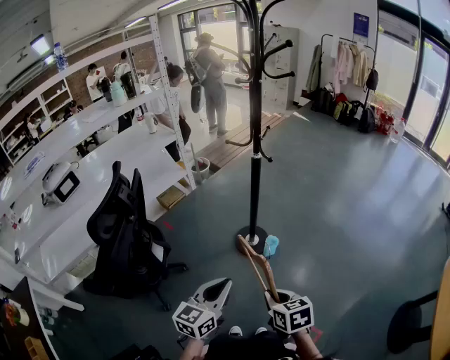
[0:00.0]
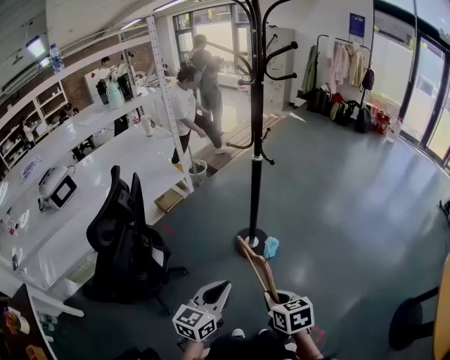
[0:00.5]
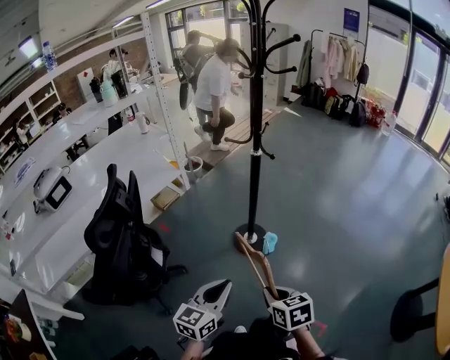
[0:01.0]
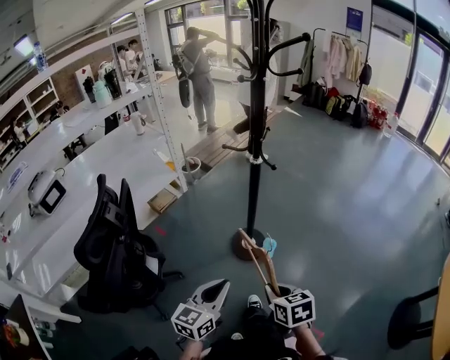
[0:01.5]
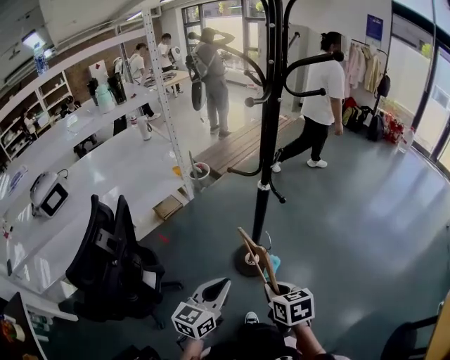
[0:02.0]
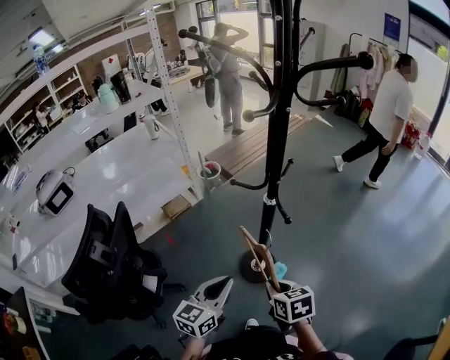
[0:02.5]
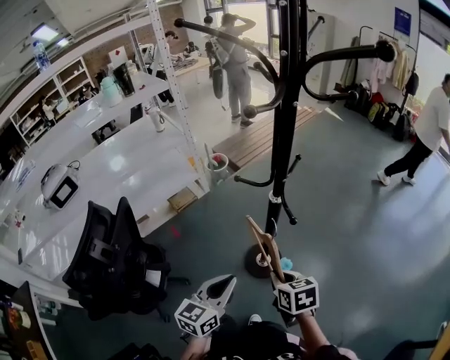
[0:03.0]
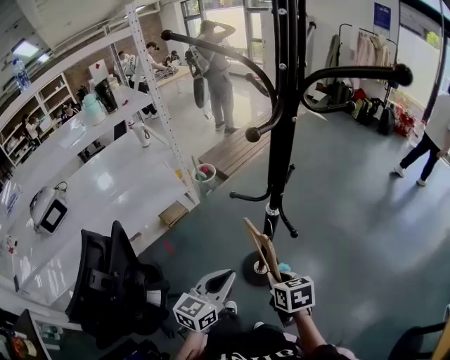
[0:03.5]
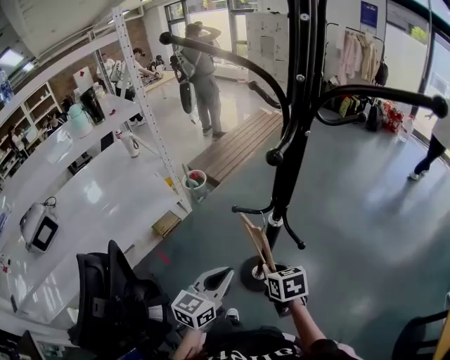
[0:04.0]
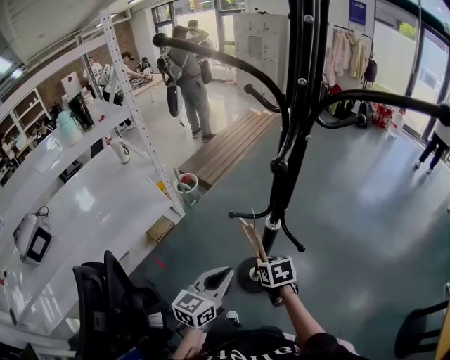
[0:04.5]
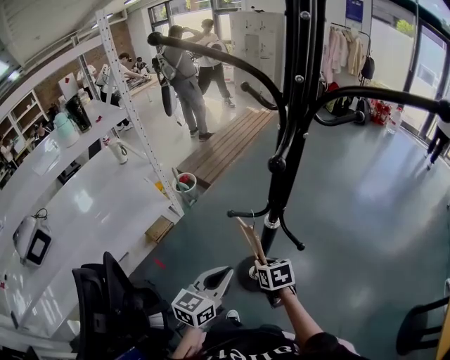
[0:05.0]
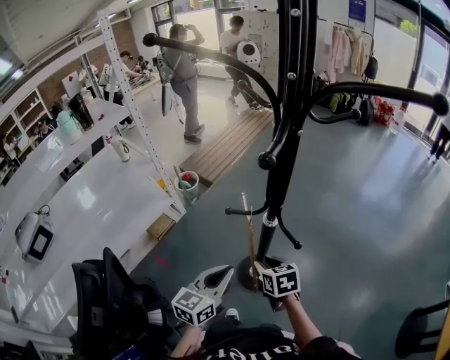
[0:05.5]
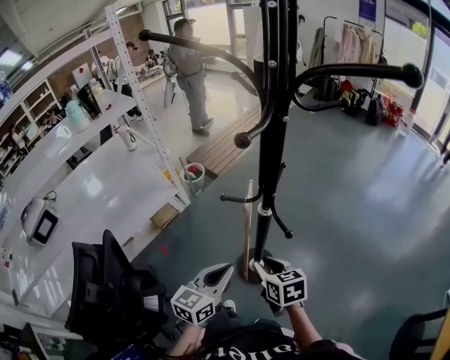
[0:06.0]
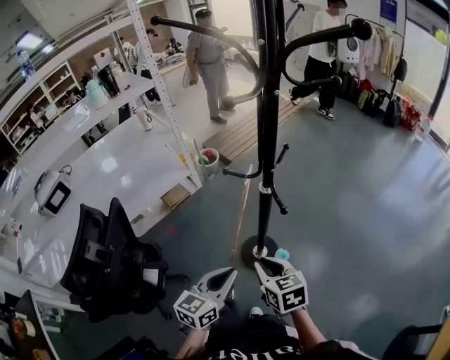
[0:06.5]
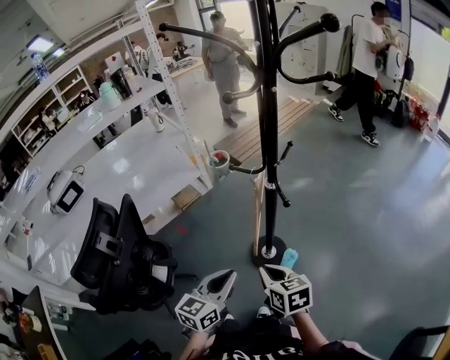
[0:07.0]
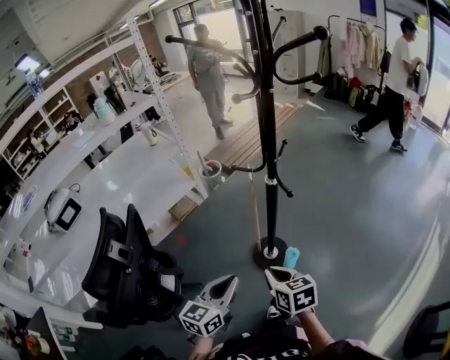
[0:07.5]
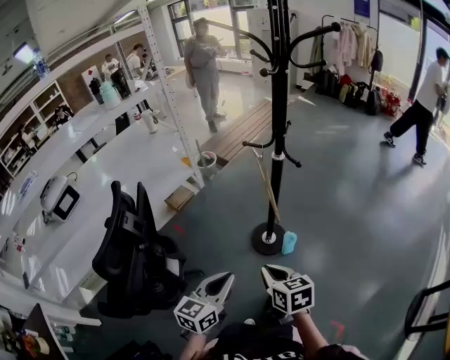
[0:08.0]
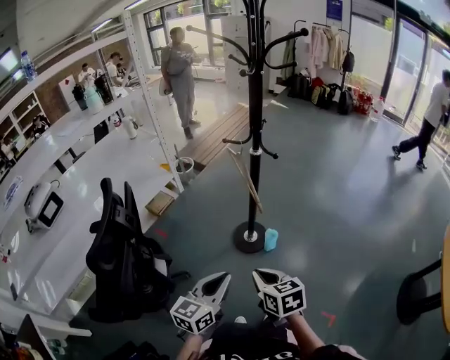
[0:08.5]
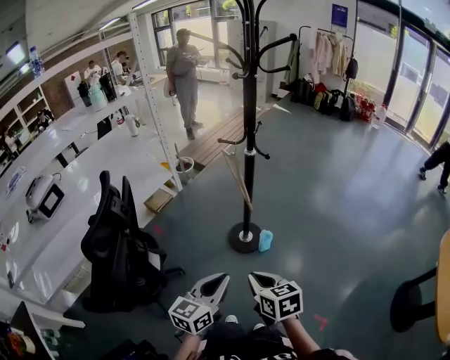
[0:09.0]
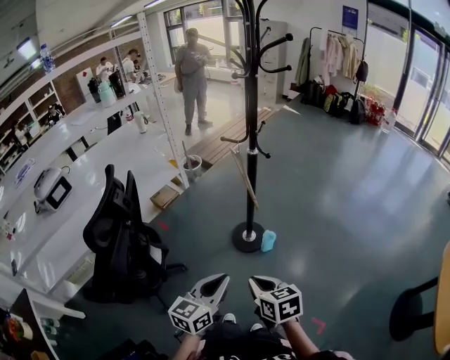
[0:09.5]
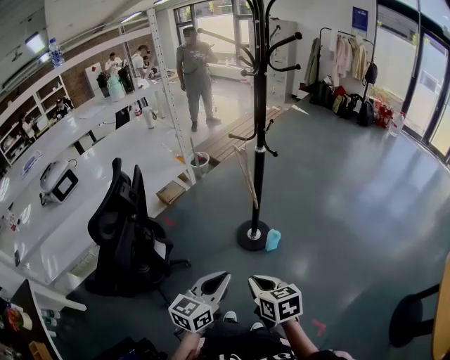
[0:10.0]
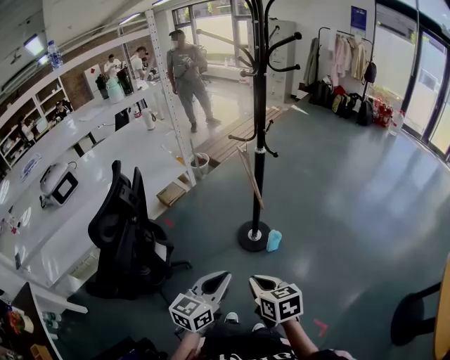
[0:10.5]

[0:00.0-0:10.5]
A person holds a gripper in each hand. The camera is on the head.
0:00.0 to 0:02.0: Both grippers move forward, approximately 20 cm.
0:02.0 to 0:04.0: Both grippers move forward, some 25 cm.
0:04.0 to 0:06.5: The right gripper shifts roughly 10 cm backward, while the left gripper heads backward and to the right, covering some 15 cm.
0:06.5 to 0:08.5: Both grippers travel together backward and to the left, about 25 cm.
0:08.5 to 0:10.5: The left gripper moves to the right, some 5 cm, while the right gripper travels backward by roughly 5 cm.

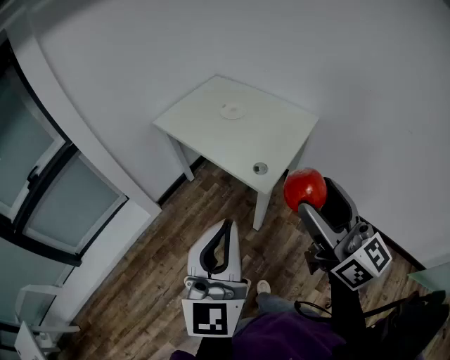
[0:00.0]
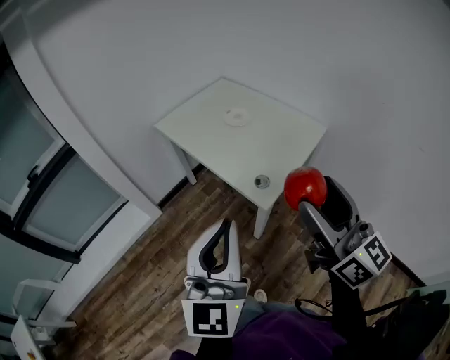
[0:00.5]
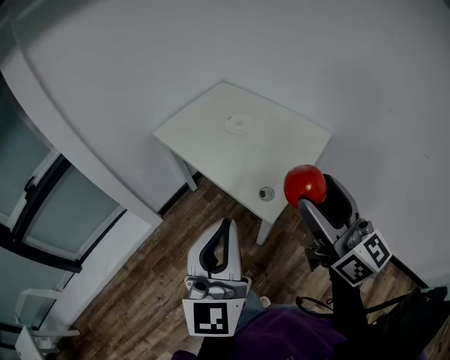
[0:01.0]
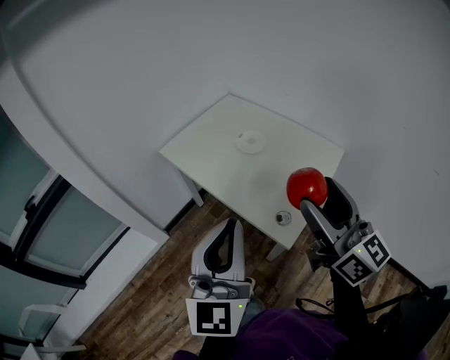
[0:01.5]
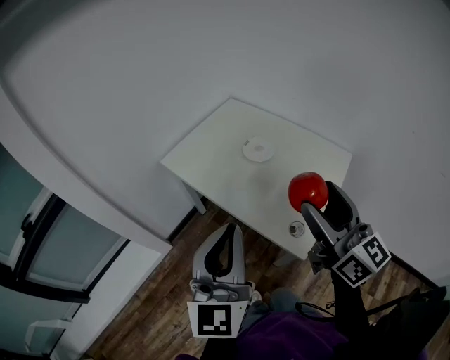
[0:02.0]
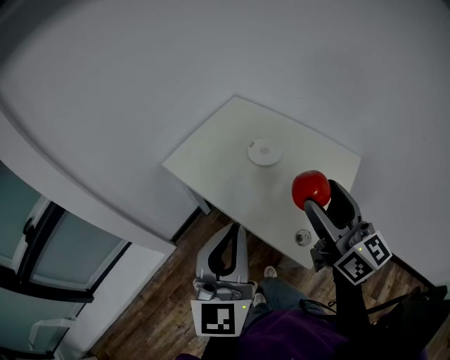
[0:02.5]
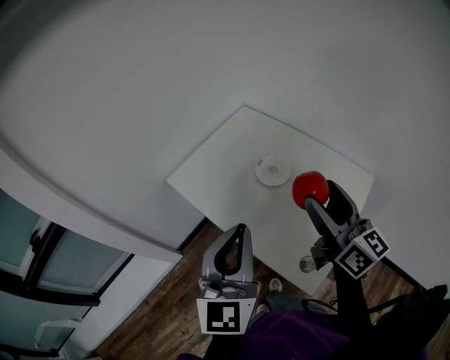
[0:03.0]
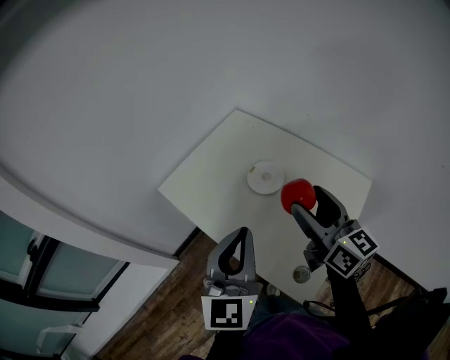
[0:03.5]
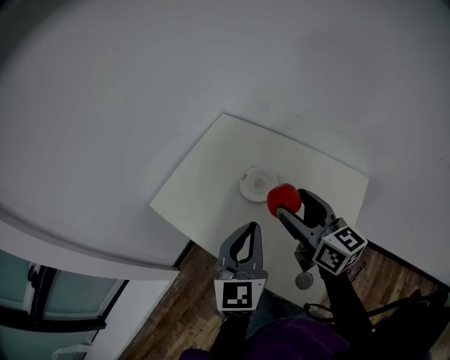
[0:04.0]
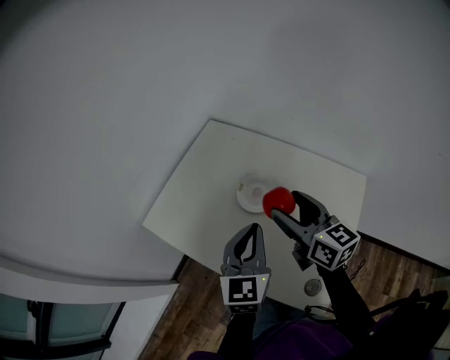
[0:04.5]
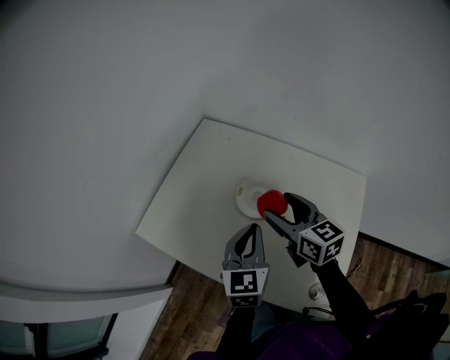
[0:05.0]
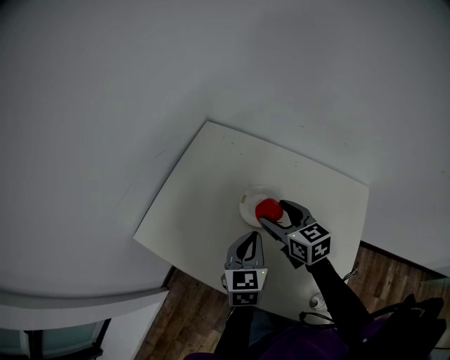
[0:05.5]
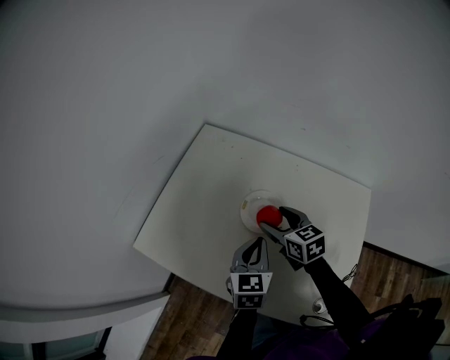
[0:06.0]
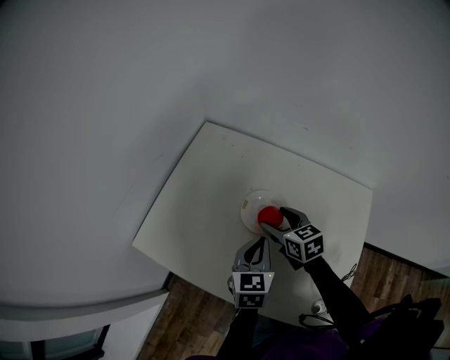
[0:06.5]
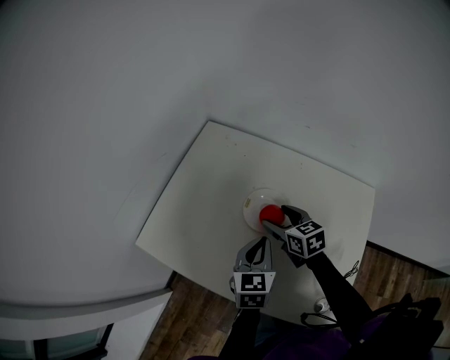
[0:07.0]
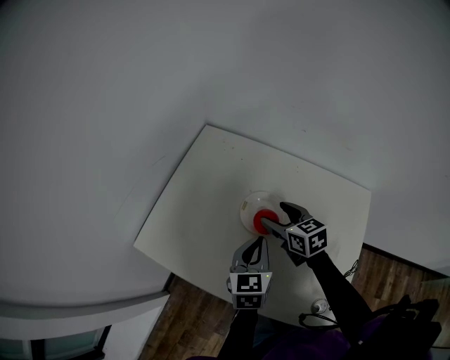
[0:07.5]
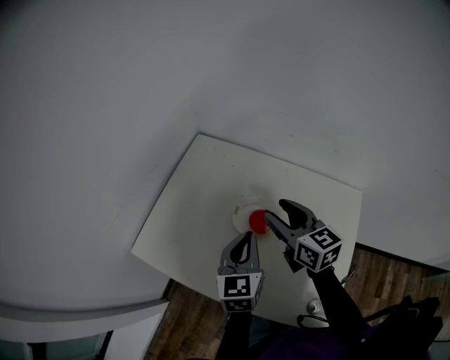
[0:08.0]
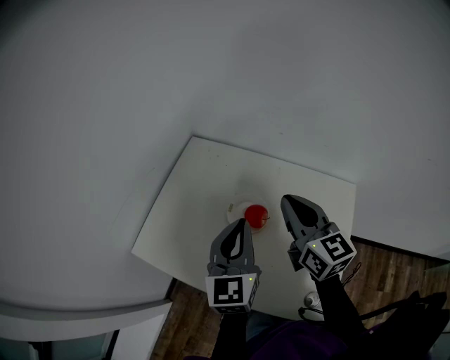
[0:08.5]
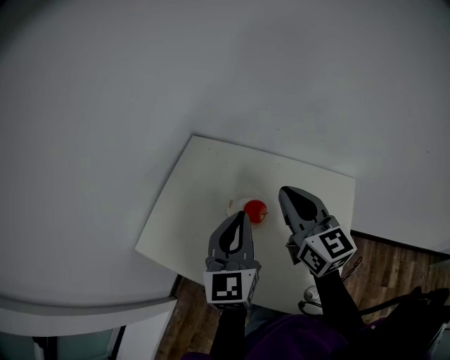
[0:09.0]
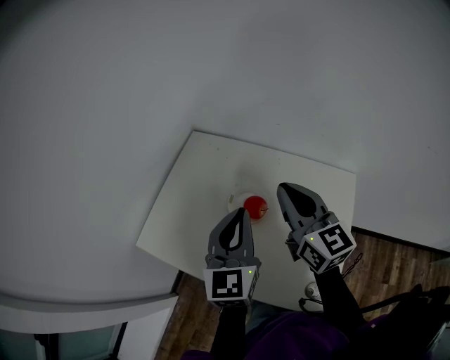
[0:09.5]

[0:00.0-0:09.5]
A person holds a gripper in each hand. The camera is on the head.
0:00.0 to 0:02.0: Both grippers move forward, some 30 cm.
0:02.0 to 0:04.0: The right gripper heads forward and downward, covering some 25 cm, while the left gripper goes approximately 30 cm forward, downward and to the right.
0:04.0 to 0:05.5: The two grippers go roughly 20 cm downward and forward. The right gripper changes its angle by some 30 degrees.
0:05.5 to 0:07.5: The right gripper ends up approximately 5 cm from where it was.
0:07.5 to 0:09.5: The grippers both shift upward by some 20 cm. The right gripper changes its angle by about 30 degrees, and closes its fingers, while the left gripper swivels some 20 degrees.

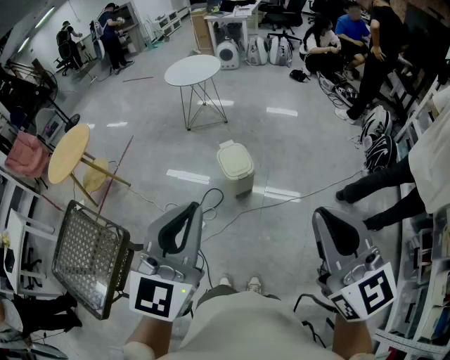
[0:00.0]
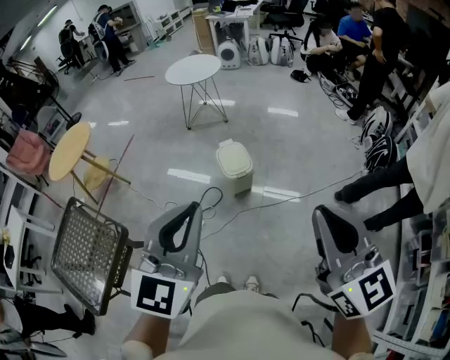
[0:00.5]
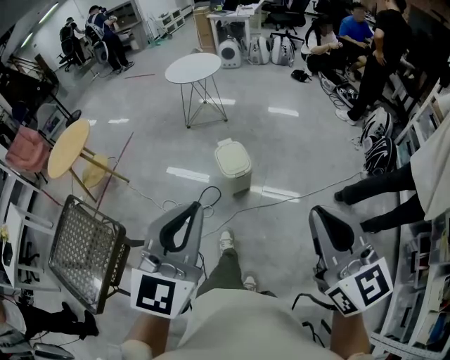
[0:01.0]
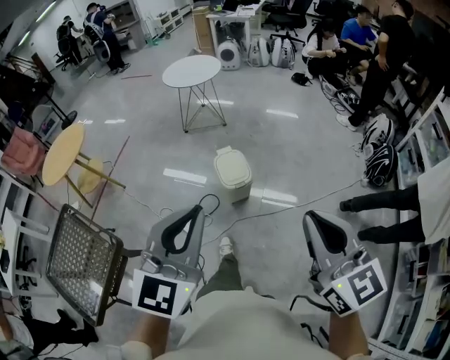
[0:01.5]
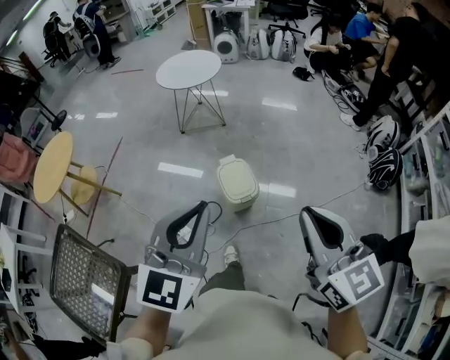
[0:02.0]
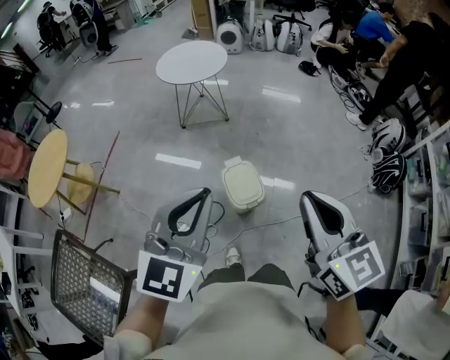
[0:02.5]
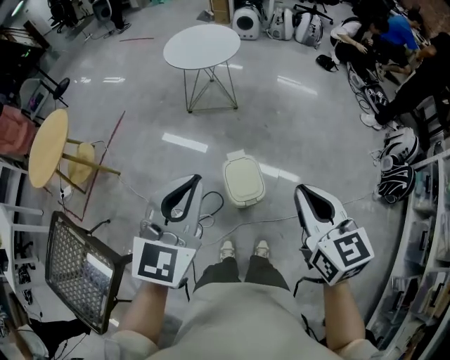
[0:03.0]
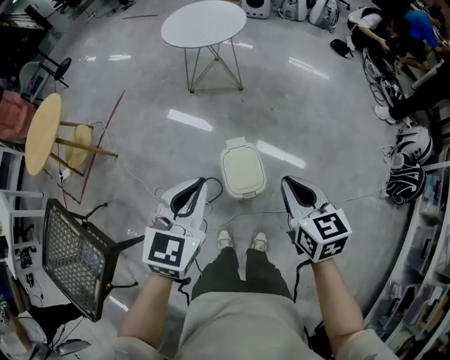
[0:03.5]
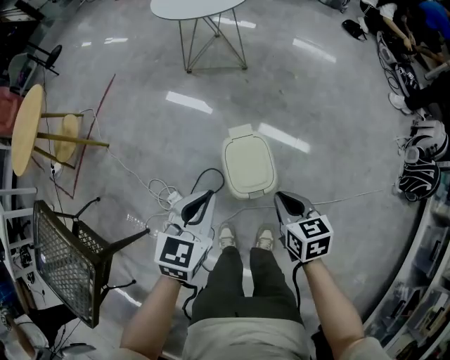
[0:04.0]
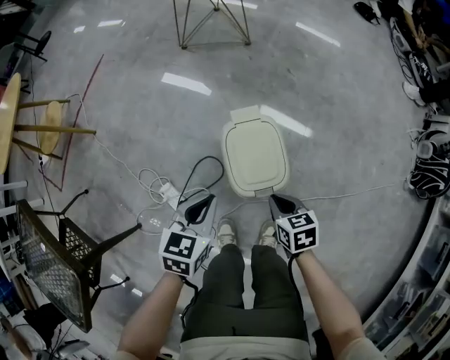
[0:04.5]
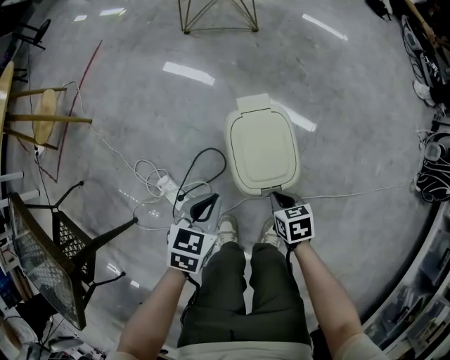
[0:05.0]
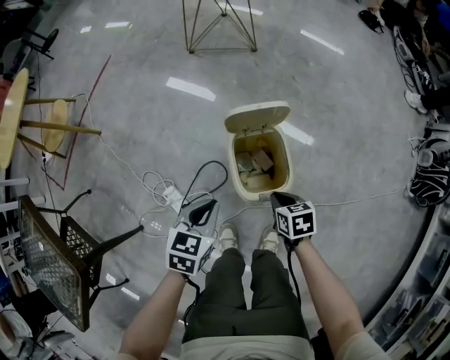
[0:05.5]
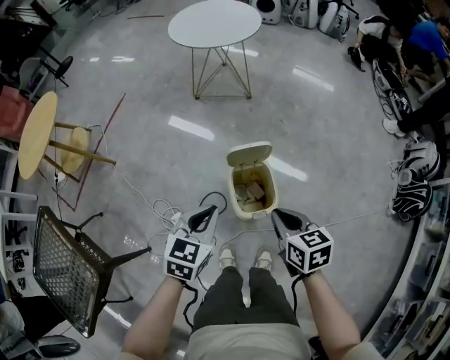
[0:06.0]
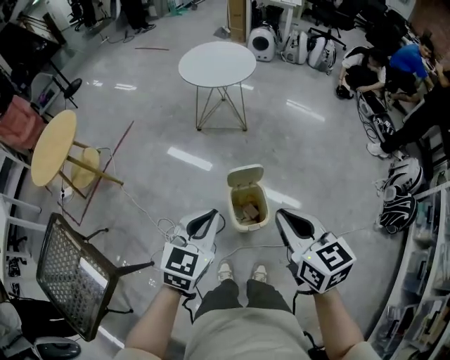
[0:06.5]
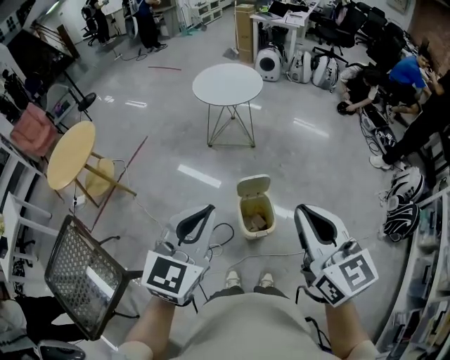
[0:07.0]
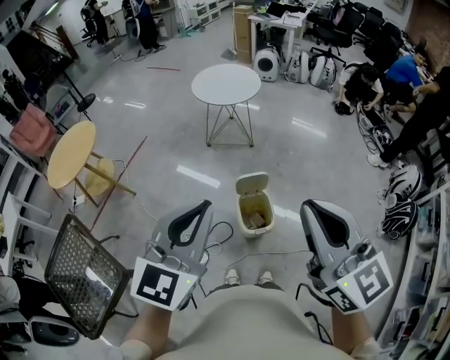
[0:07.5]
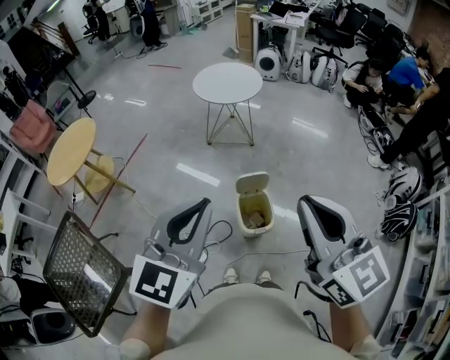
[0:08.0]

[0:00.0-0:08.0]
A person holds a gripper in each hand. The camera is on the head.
0:00.0 to 0:02.0: Both grippers travel together forward, approximately 25 cm.
0:02.0 to 0:04.0: Both grippers move downward and forward, some 50 cm. The right gripper points its fingers roughly 30 degrees further downward, while the left gripper turns by roughly 30 degrees.
0:04.0 to 0:06.0: The right gripper reaches some 30 cm downward, then returns. The left gripper reaches about 30 cm downward, then returns.
0:06.0 to 0:08.0: The grippers both shift upward by some 40 cm. The right gripper tilts its fingers approximately 40 degrees upward. The left gripper changes its angle by roughly 30 degrees.
